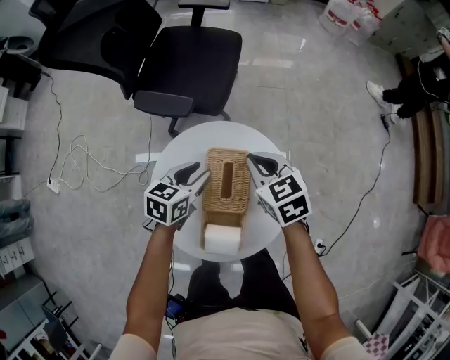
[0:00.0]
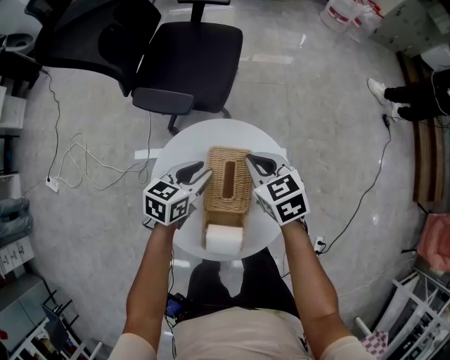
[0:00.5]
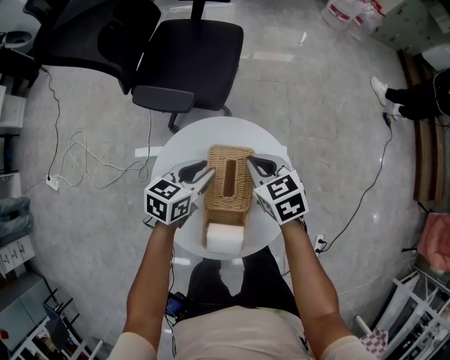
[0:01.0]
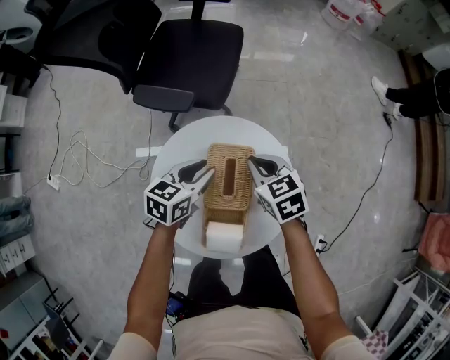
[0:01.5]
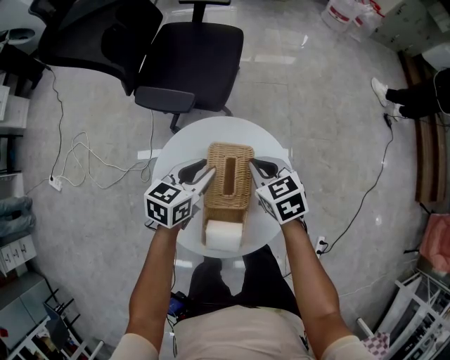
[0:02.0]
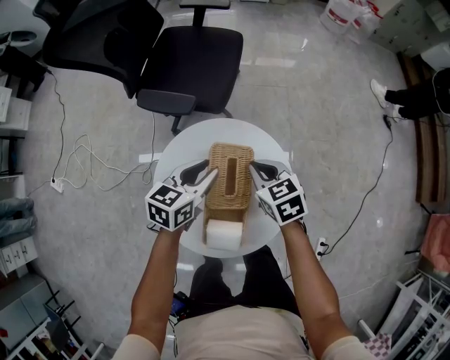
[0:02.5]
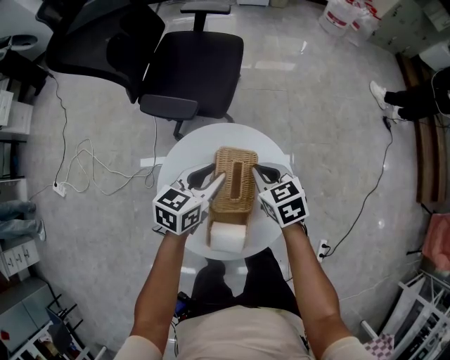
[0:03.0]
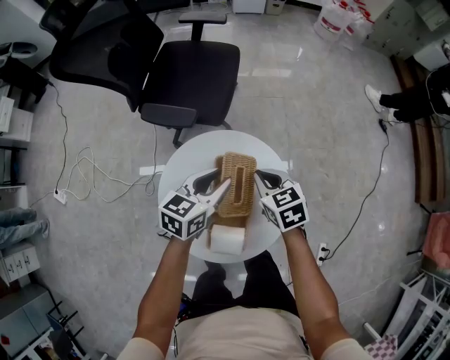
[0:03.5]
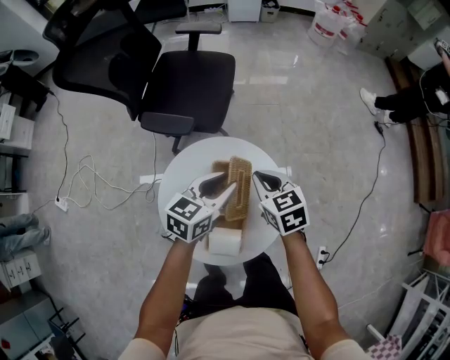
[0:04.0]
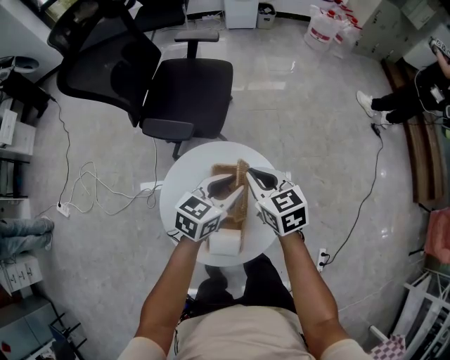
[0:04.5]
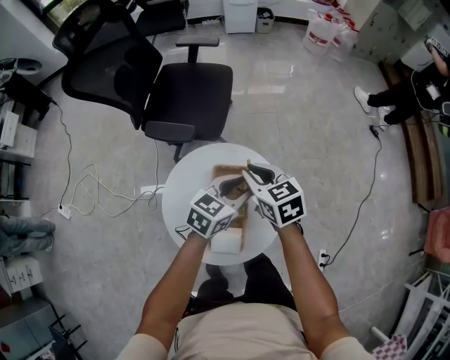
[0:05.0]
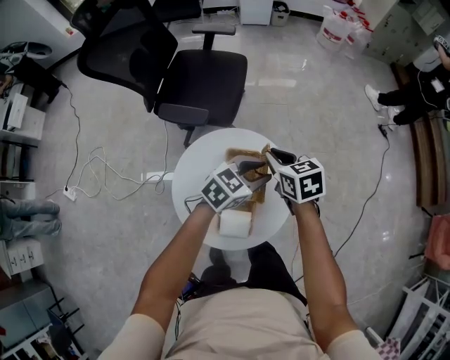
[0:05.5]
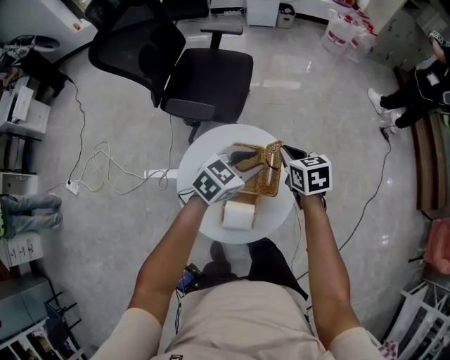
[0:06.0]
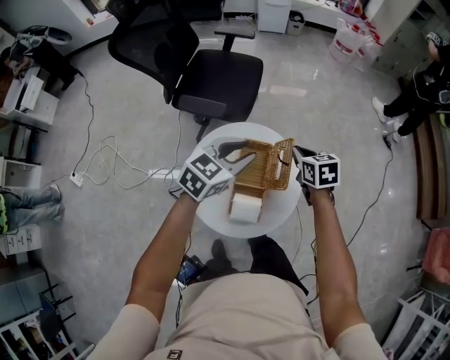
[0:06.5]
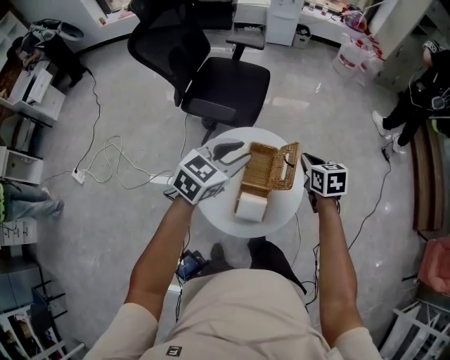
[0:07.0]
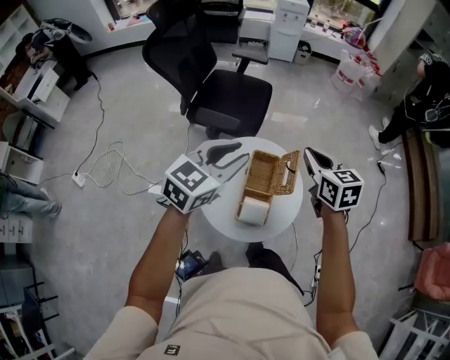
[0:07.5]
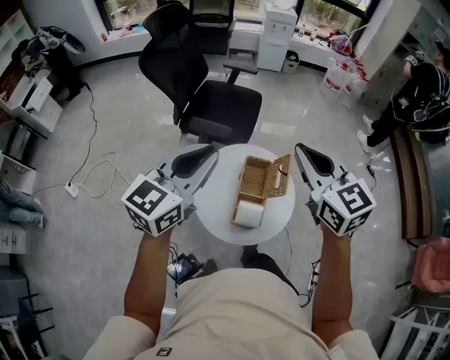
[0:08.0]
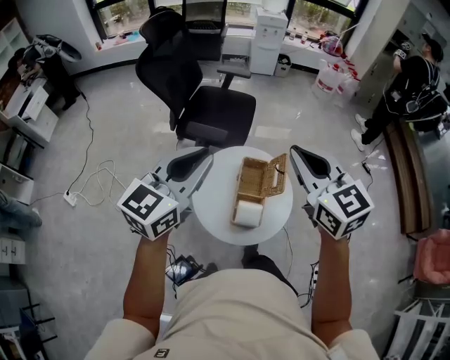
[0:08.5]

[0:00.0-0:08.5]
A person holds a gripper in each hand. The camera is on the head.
0:00.0 to 0:02.0: The grippers stay close to where they were, moving slightly.
0:02.0 to 0:04.0: The right gripper is displaced upward by roughly 5 cm. The left gripper goes some 10 cm upward and to the right.
0:04.0 to 0:06.5: The right gripper moves some 5 cm. The left gripper shifts approximately 10 cm upward.
0:06.5 to 0:08.5: The left gripper heads upward, backward and to the left, covering approximately 30 cm, and swivels some 30 degrees; the right gripper goes about 40 cm upward and backward, and tilts its fingers some 30 degrees upward.

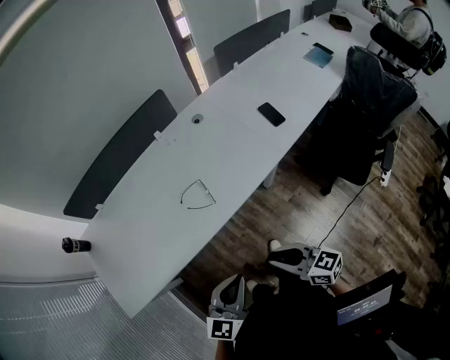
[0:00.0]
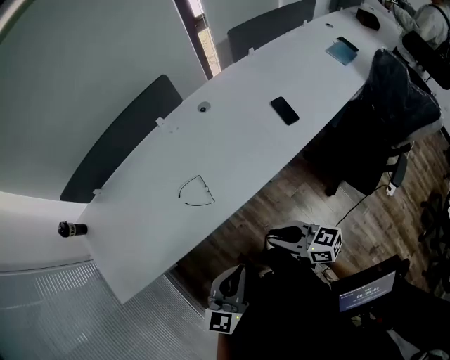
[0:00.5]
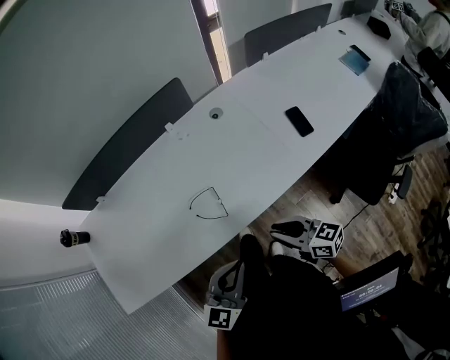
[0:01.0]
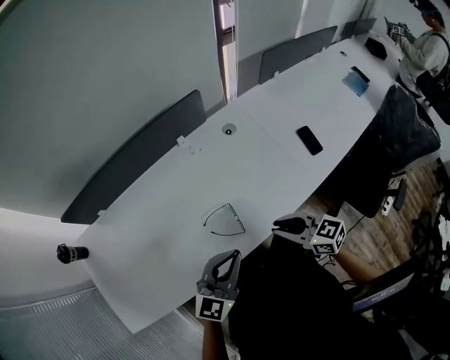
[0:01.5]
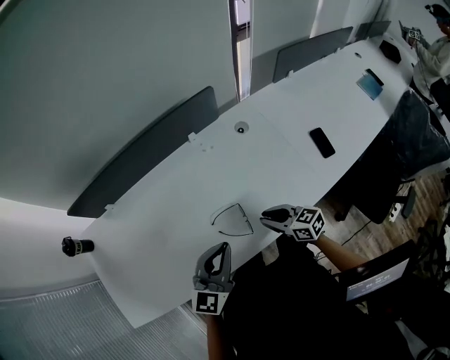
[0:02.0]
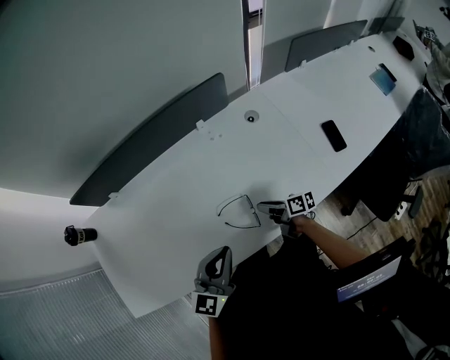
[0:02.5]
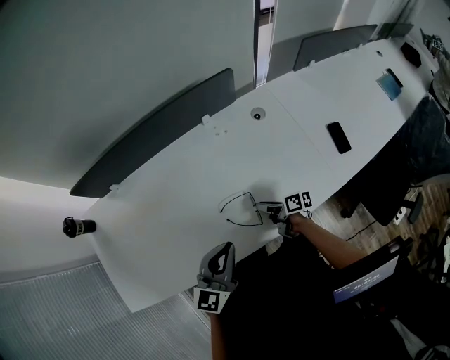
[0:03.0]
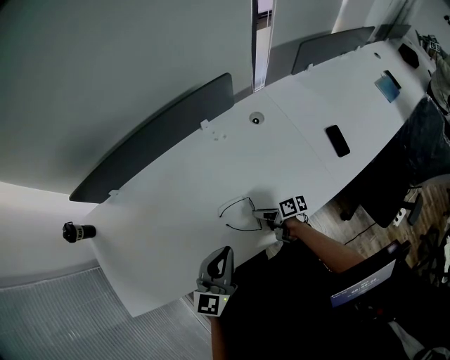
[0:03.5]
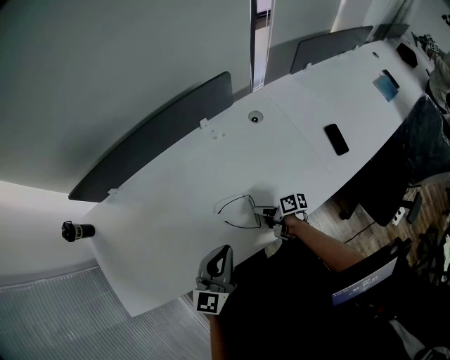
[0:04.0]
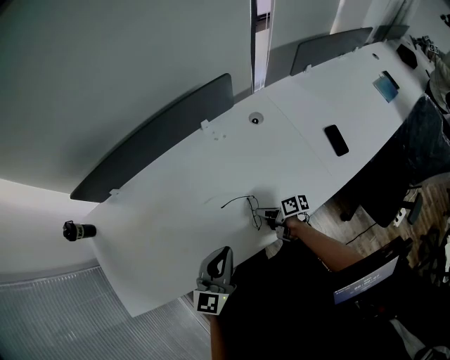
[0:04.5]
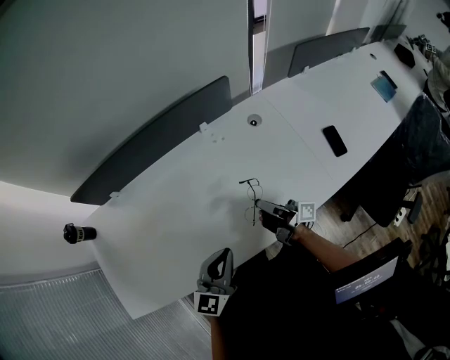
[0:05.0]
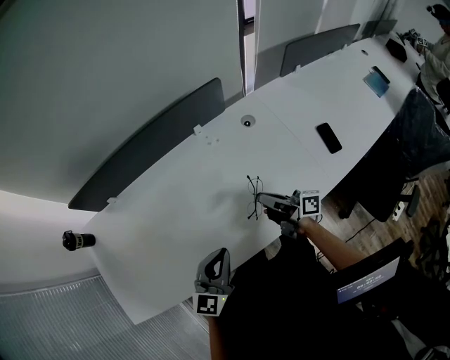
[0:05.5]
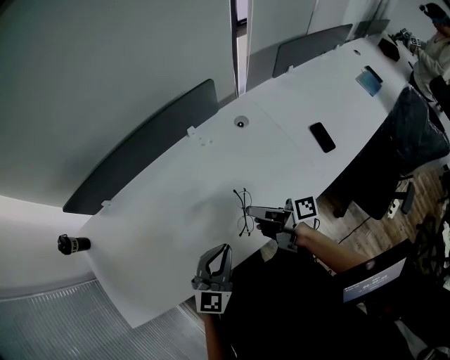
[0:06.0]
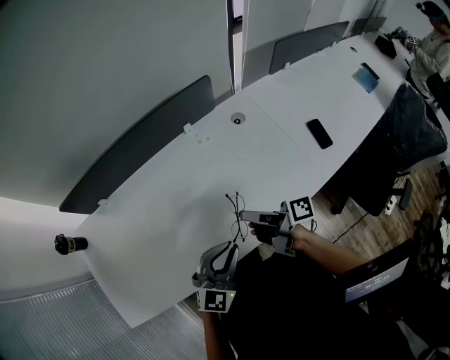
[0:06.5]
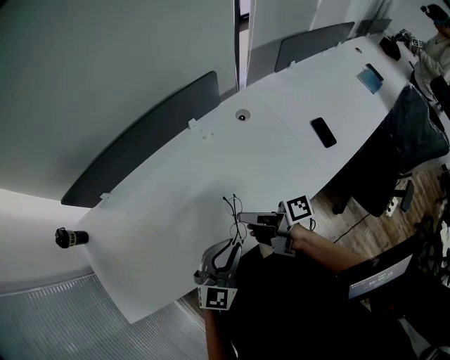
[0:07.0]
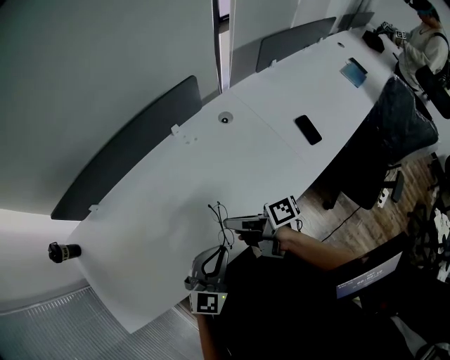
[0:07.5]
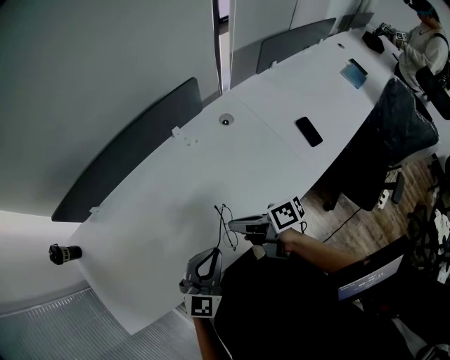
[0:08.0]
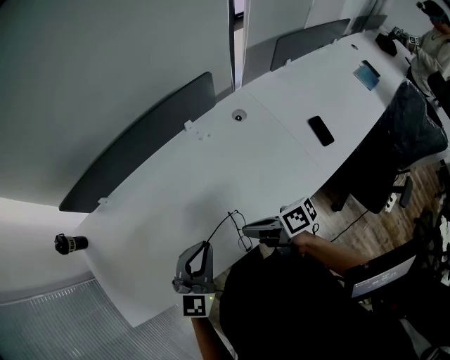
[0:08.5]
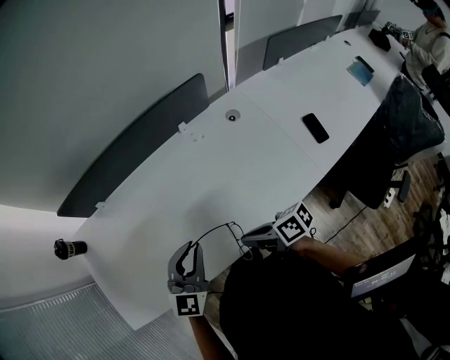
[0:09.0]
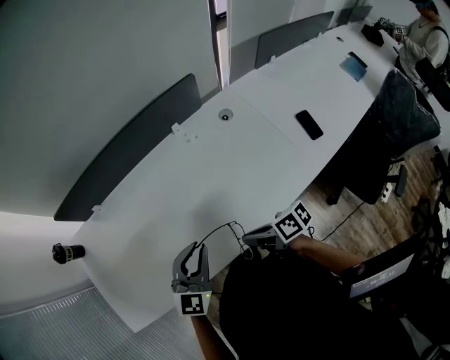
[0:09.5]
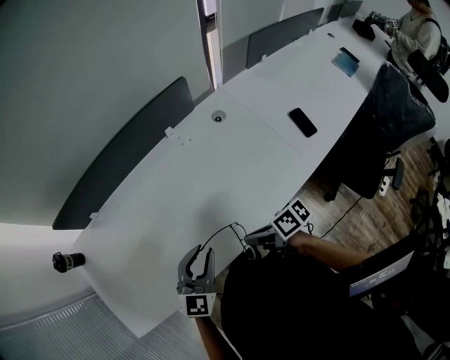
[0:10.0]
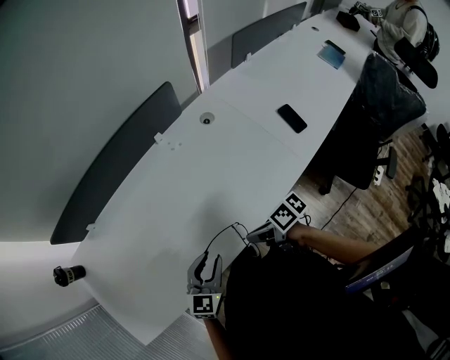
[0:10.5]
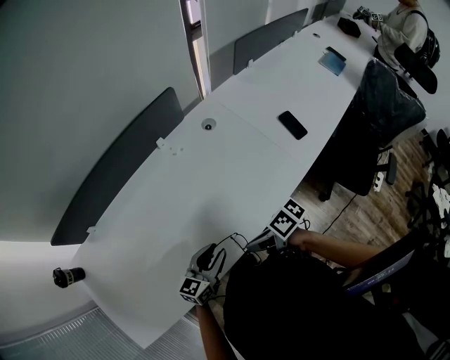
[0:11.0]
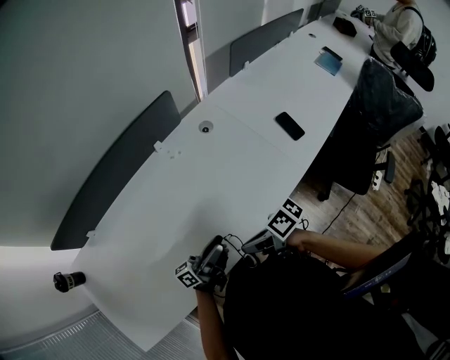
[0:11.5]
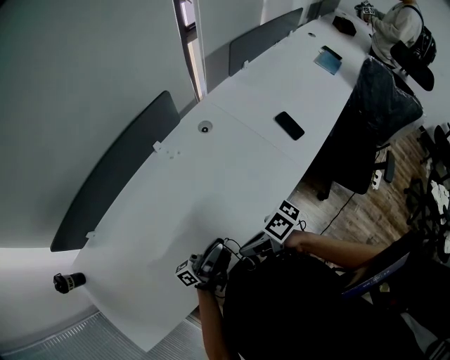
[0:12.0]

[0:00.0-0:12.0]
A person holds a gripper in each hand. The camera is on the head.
0:00.0 to 0:02.0: The left gripper shifts by some 30 cm.
0:02.0 to 0:04.0: The left gripper changes place by approximately 5 cm.
0:10.0 to 0:12.0: The left gripper travels downward by roughly 5 cm, and rolls counterclockwise, seen from behind, by about 70 degrees.

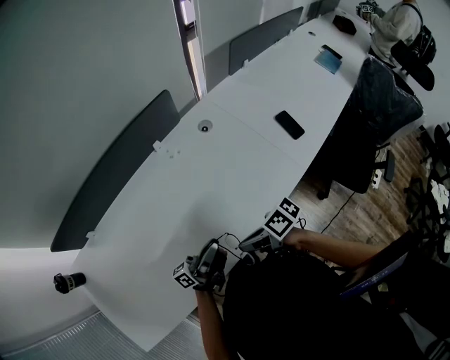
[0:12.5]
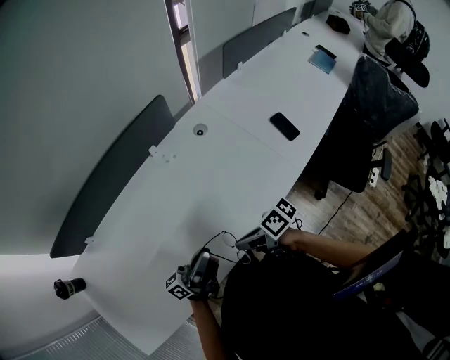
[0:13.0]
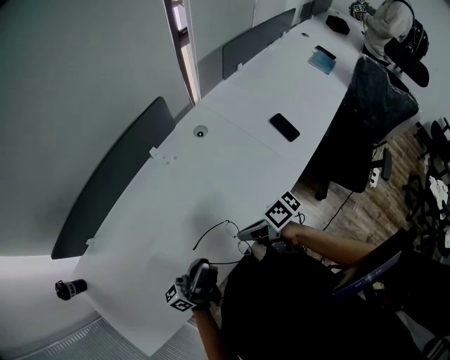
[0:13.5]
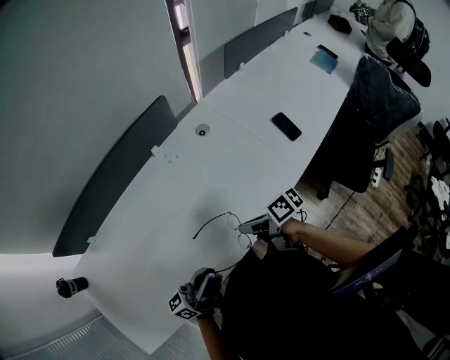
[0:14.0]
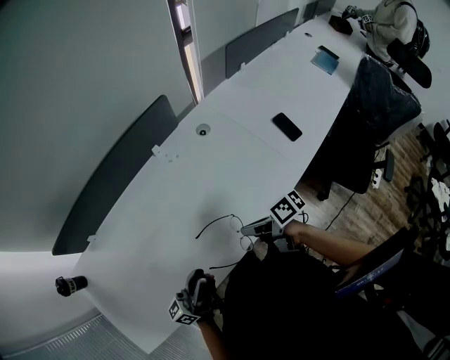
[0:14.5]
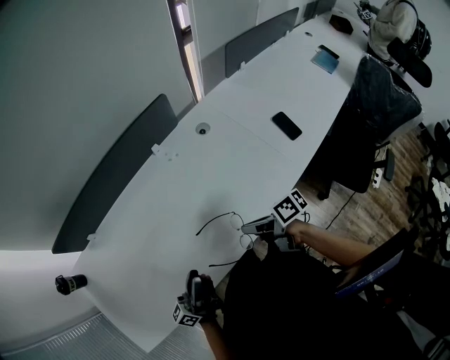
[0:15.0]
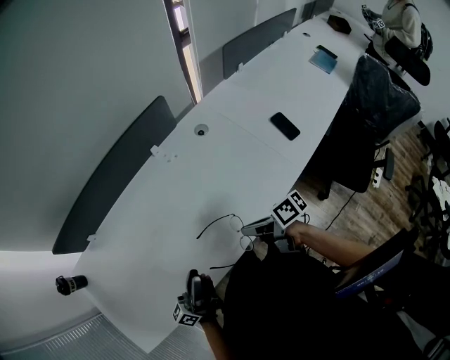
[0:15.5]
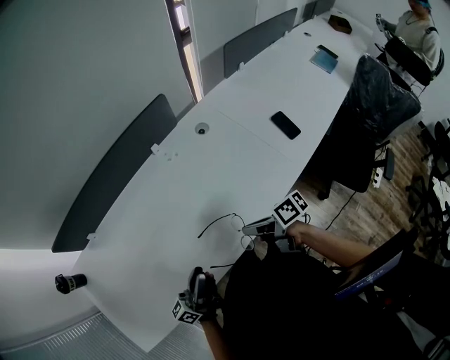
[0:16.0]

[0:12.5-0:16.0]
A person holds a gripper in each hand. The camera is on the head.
0:12.5 to 0:14.5: The left gripper changes place by approximately 10 cm, and swivels about 20 degrees.

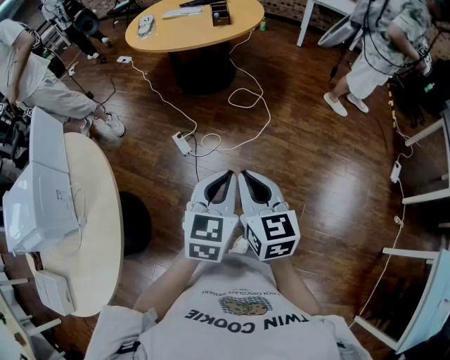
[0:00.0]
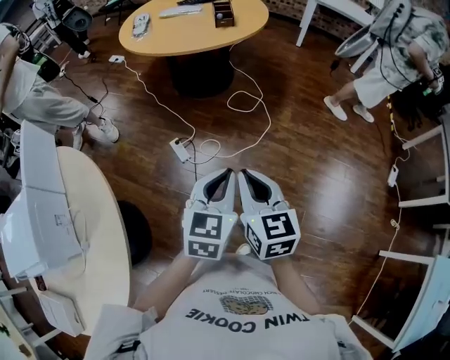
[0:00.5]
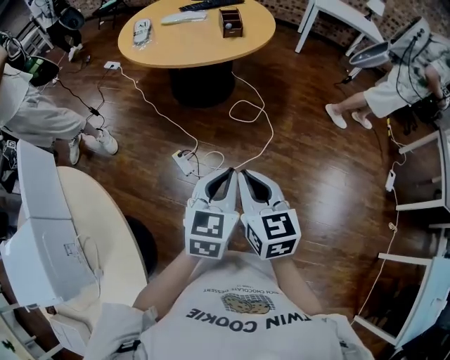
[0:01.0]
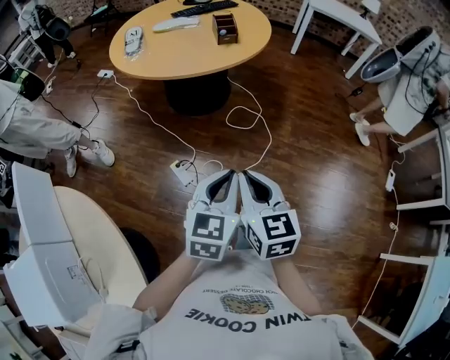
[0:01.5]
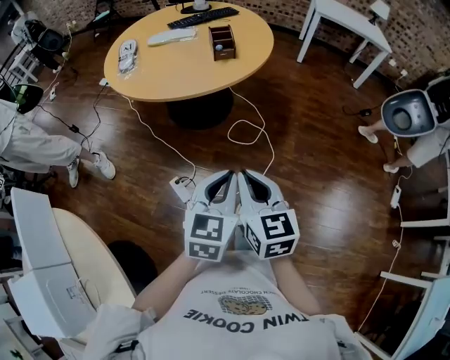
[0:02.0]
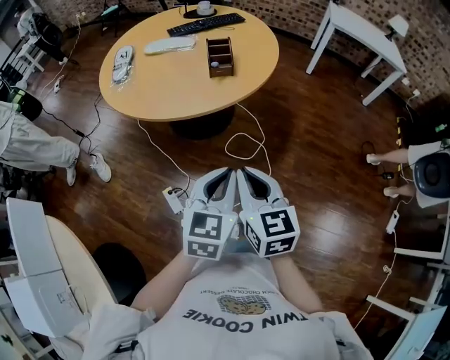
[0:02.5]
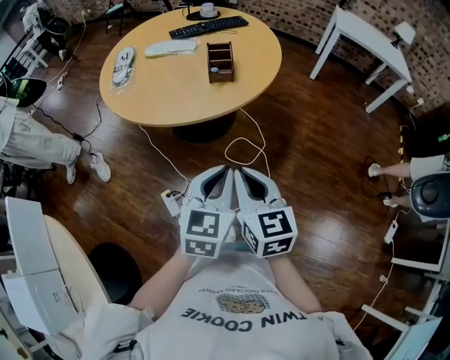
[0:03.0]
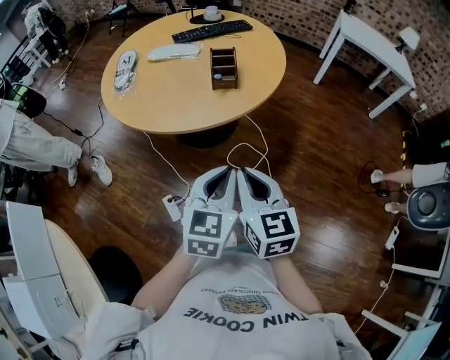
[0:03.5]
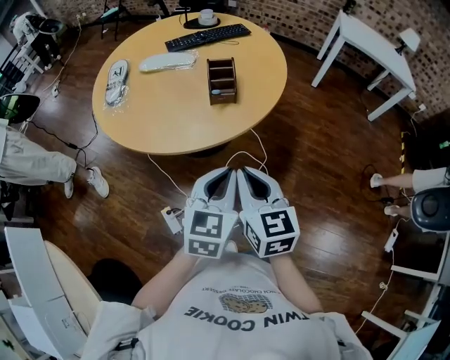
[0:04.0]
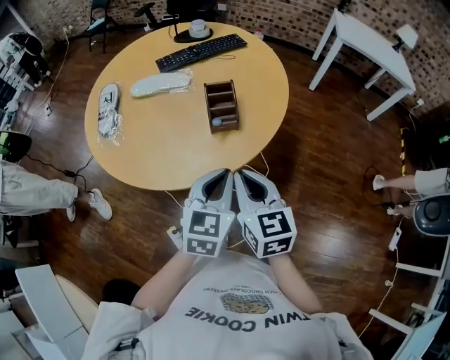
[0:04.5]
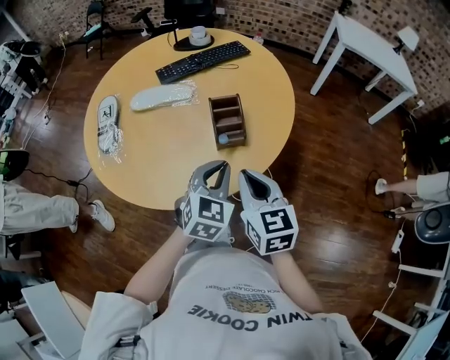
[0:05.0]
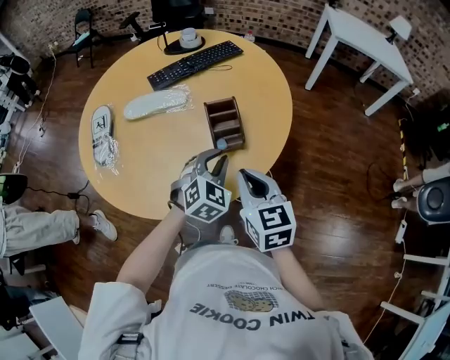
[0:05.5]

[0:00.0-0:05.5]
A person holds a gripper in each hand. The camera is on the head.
0:00.0 to 0:02.0: Both grippers move forward, approximately 40 cm.
0:02.0 to 0:03.5: Both grippers move forward, roughly 20 cm.
0:03.5 to 0:05.5: Both grippers move forward, approximately 35 cm. The left gripper turns by about 40 degrees.
